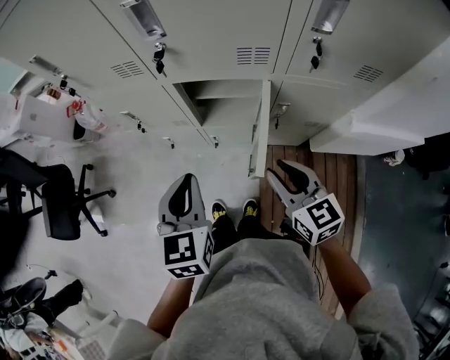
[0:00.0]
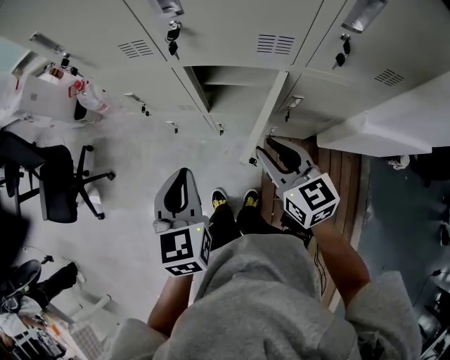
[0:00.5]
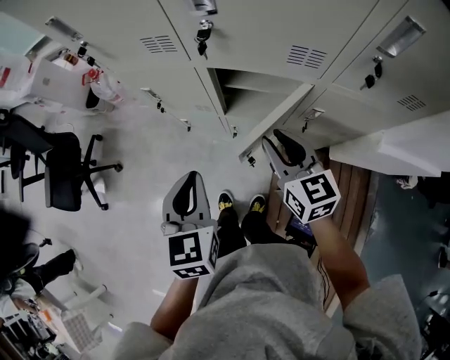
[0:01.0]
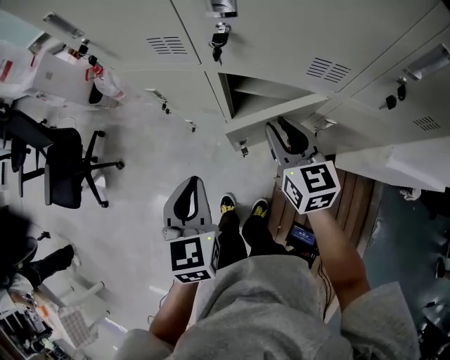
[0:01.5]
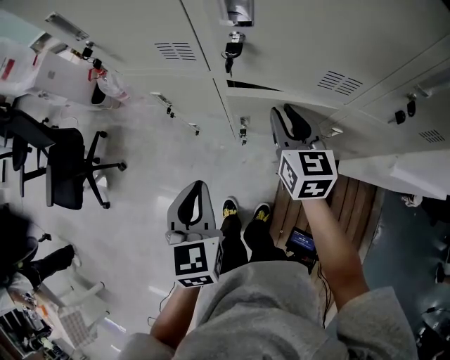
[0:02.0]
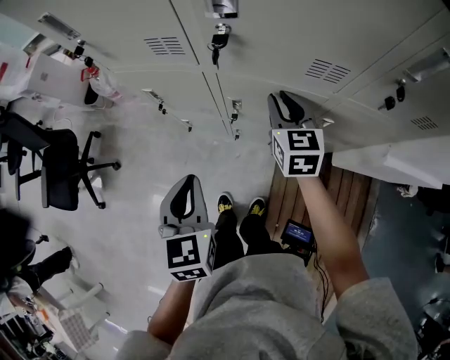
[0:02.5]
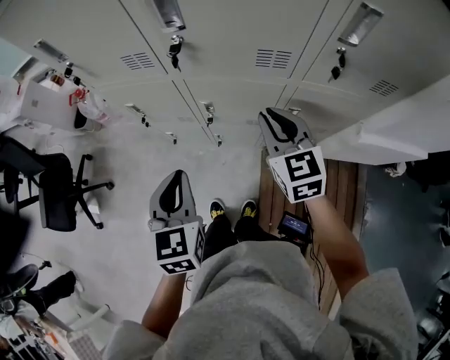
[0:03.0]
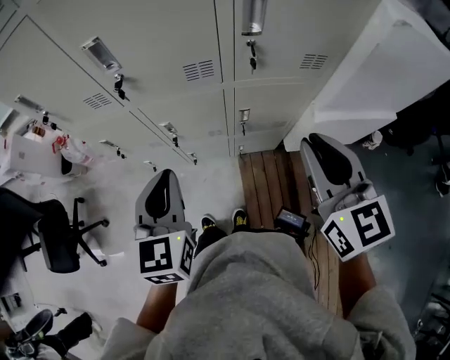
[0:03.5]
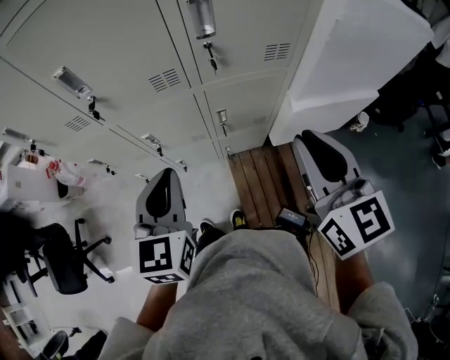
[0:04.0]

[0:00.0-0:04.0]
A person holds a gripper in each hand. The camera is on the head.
0:00.0 to 0:02.0: The right gripper heads forward, covering about 20 cm; the left gripper moves to the left, about 5 cm.
0:02.0 to 0:04.0: The left gripper heads to the right and upward, covering approximately 25 cm, and turns by roughly 30 degrees. Meanwhile the right gripper moves backward, to the right and upward, roughly 40 cm.

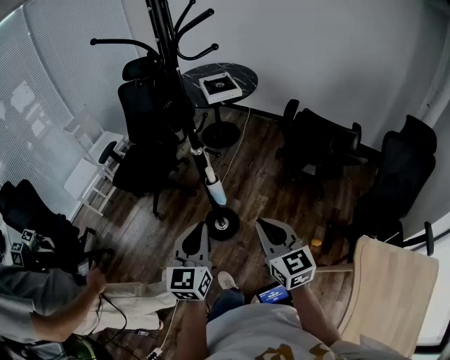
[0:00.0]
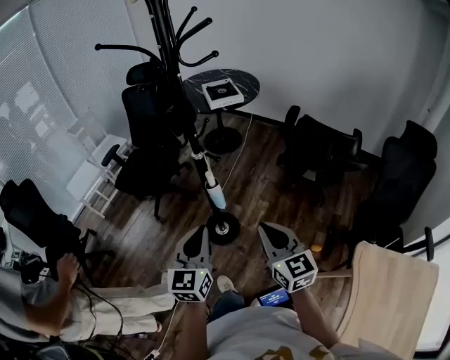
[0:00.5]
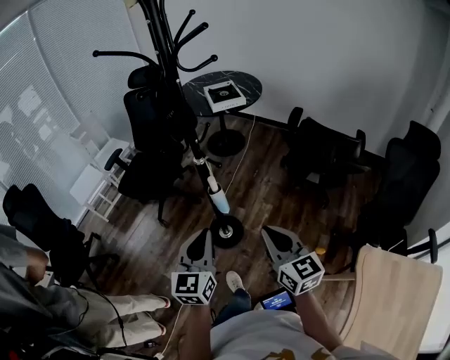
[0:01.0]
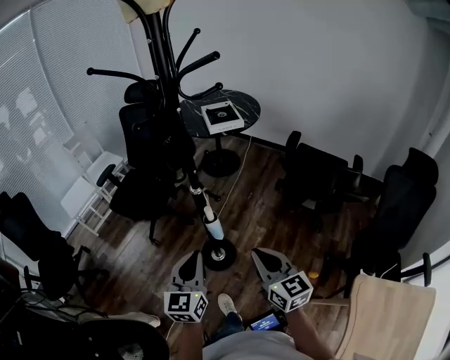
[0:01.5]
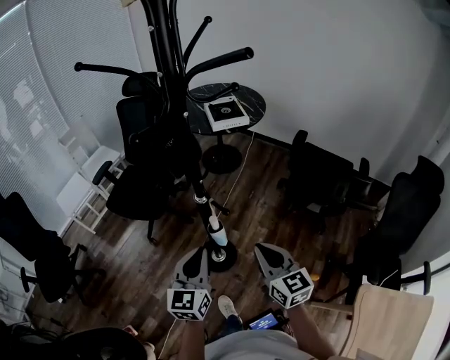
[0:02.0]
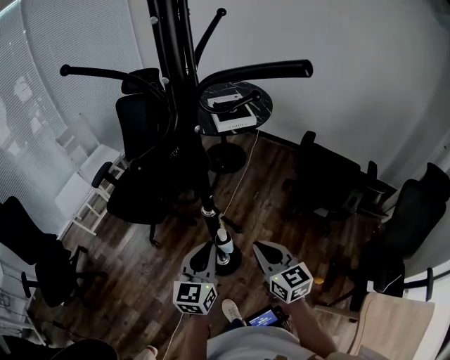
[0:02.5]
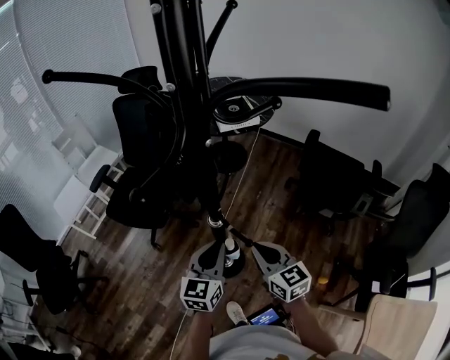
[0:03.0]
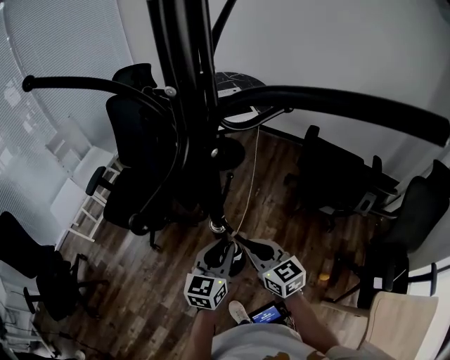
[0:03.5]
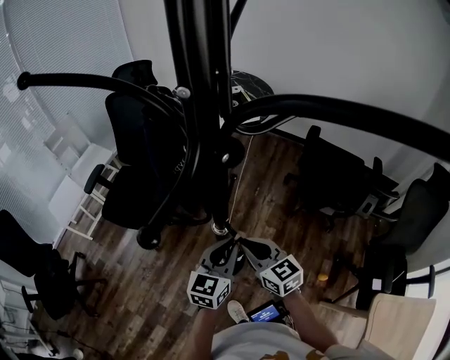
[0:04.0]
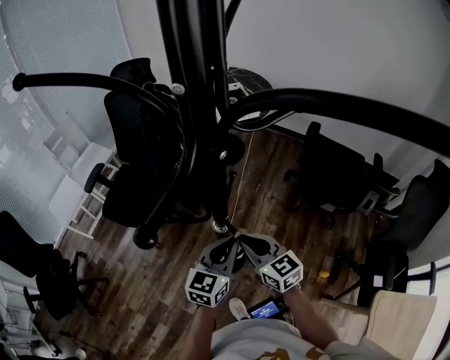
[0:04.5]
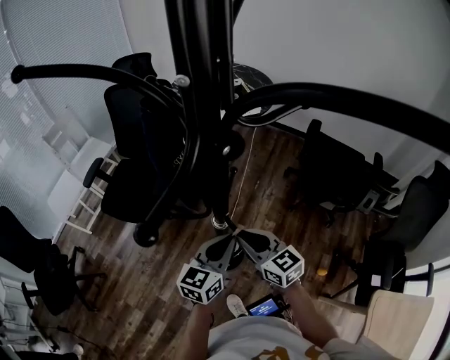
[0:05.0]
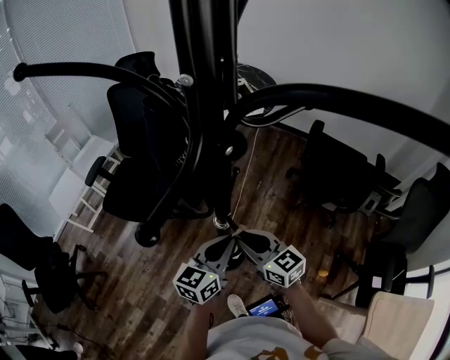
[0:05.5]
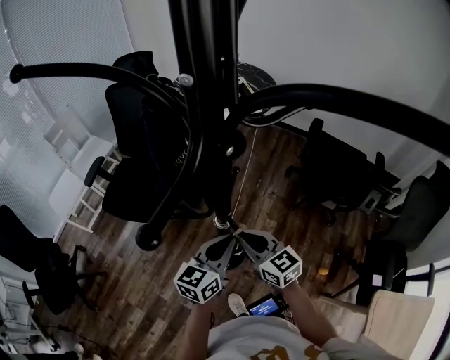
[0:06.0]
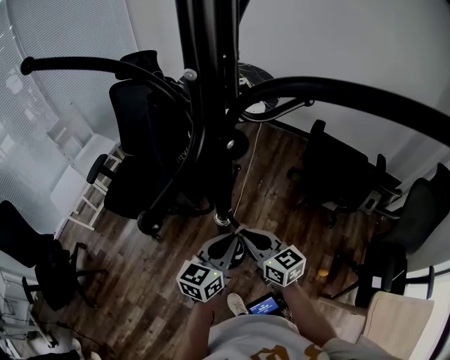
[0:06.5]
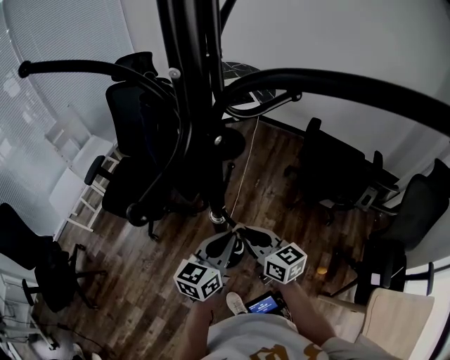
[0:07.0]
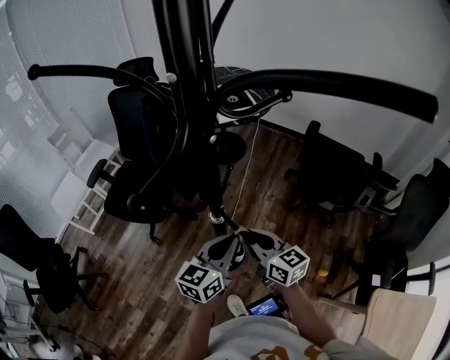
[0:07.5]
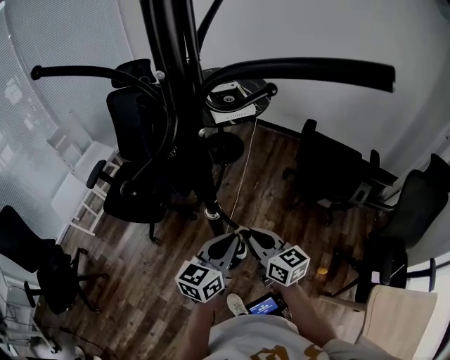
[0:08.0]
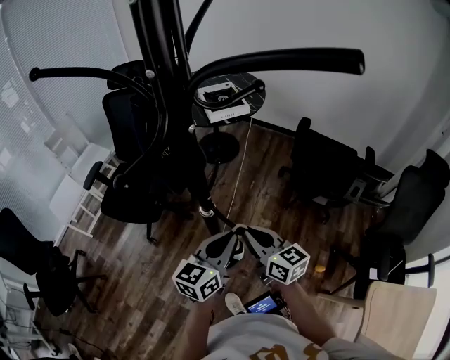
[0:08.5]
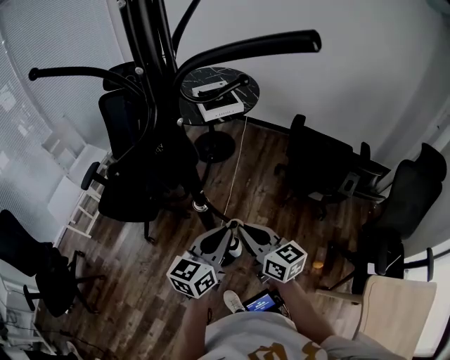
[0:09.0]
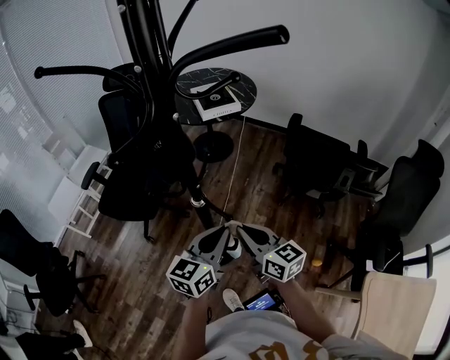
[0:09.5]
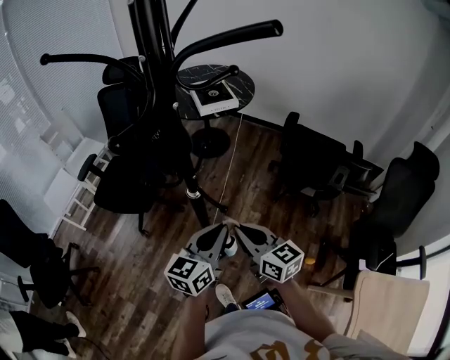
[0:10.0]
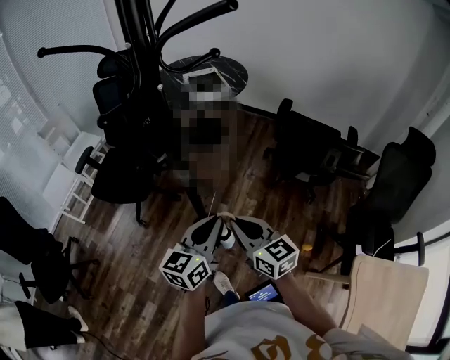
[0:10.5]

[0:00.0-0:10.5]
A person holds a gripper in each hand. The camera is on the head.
0:00.0 to 0:02.0: Both grippers travel together forward, approximately 15 cm.
0:02.0 to 0:04.0: The left gripper shifts roughly 15 cm forward. Meanwhile the right gripper heads forward, to the left and downward, covering about 20 cm.
0:04.0 to 0:06.5: The grippers move only a little.
0:06.5 to 0:08.5: The right gripper moves to the right, roughly 5 cm; the left gripper ends up about 5 cm from where it was.
0:08.5 to 0:10.5: Both grippers travel together backward, some 10 cm.

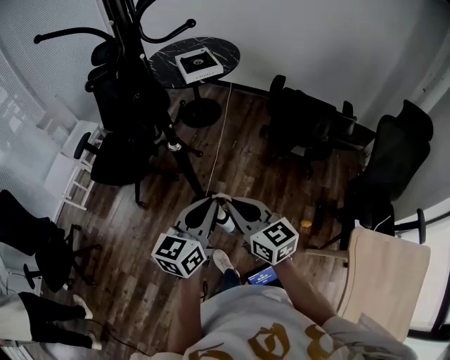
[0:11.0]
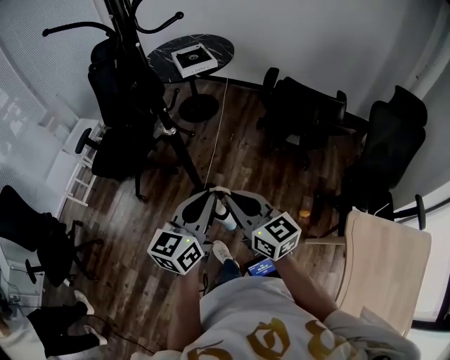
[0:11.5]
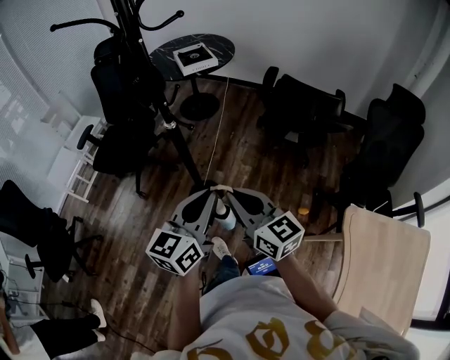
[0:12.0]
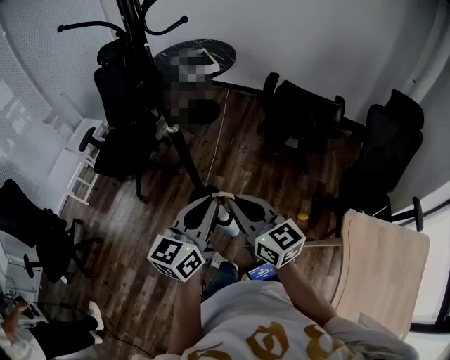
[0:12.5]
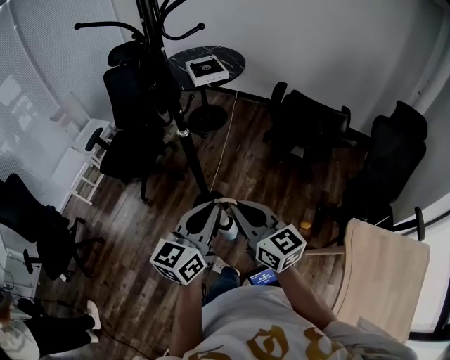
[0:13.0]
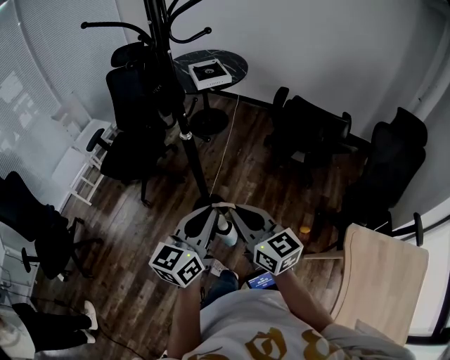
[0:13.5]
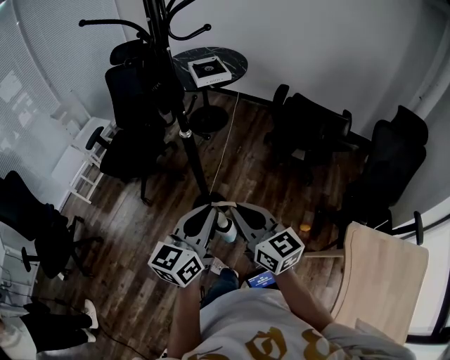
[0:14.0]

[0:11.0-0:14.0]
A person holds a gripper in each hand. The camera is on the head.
0:11.0 to 0:12.5: Both grippers move backward, approximately 10 cm.
0:12.5 to 0:14.0: The grippers stay close to where they were, moving slightly.

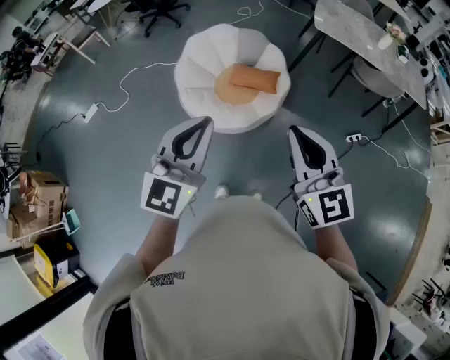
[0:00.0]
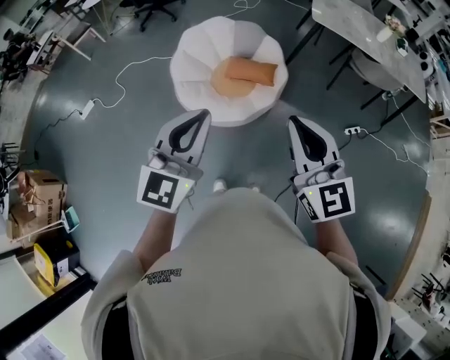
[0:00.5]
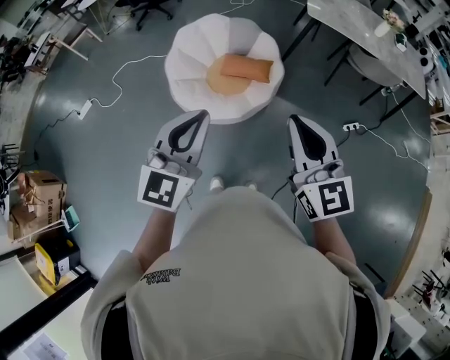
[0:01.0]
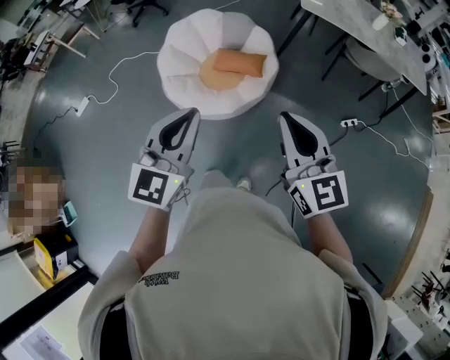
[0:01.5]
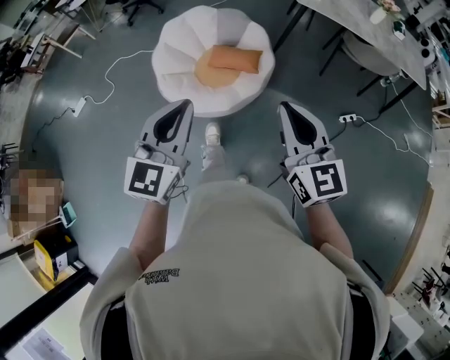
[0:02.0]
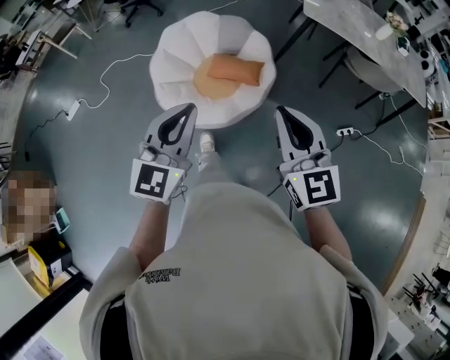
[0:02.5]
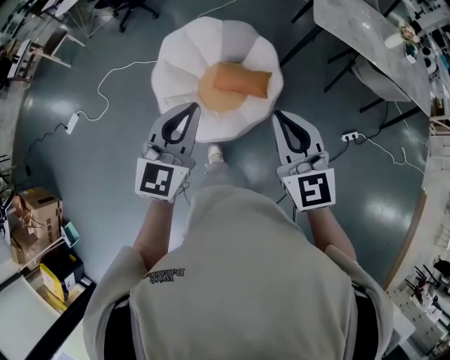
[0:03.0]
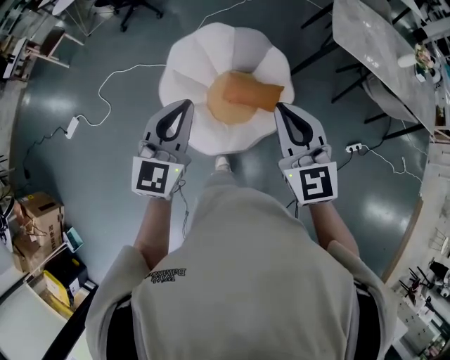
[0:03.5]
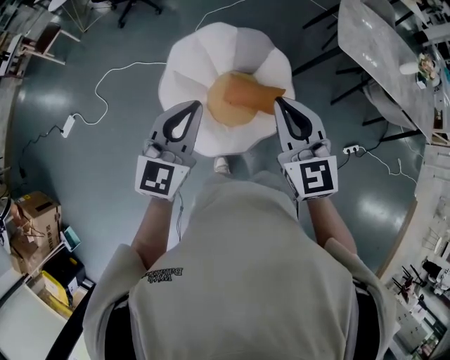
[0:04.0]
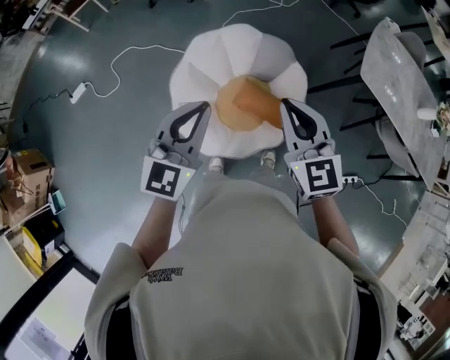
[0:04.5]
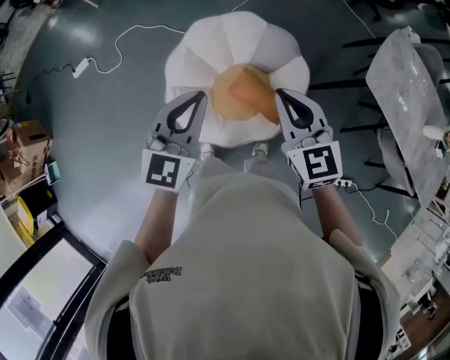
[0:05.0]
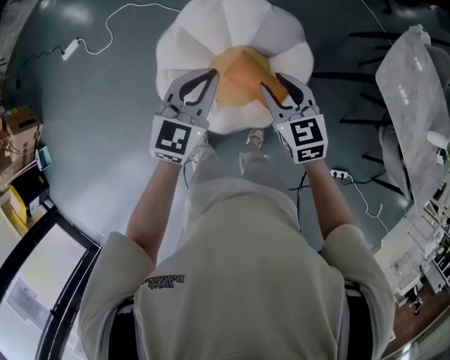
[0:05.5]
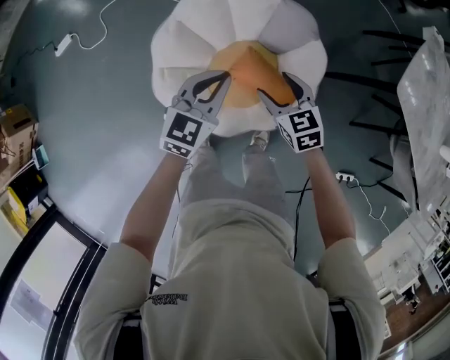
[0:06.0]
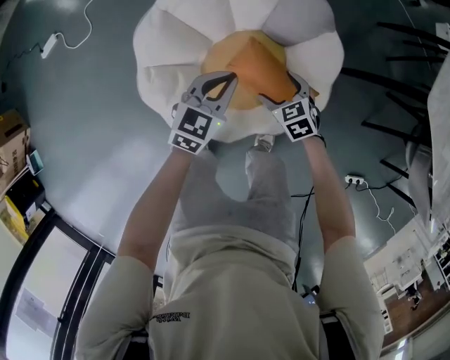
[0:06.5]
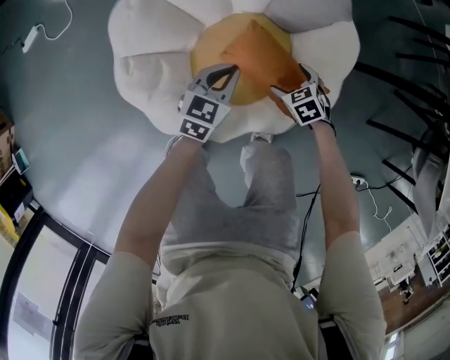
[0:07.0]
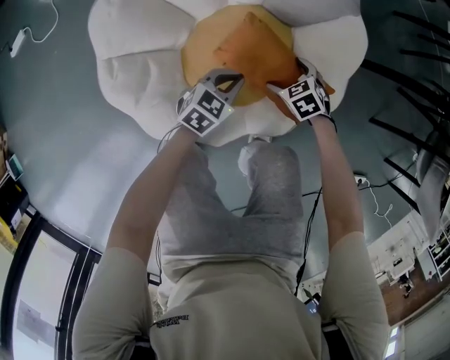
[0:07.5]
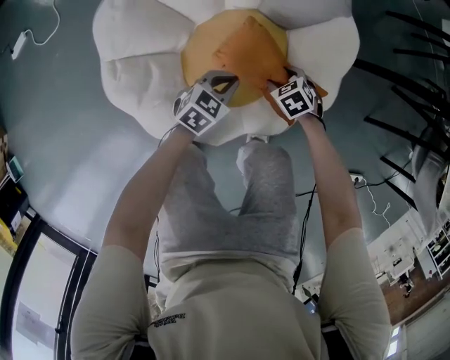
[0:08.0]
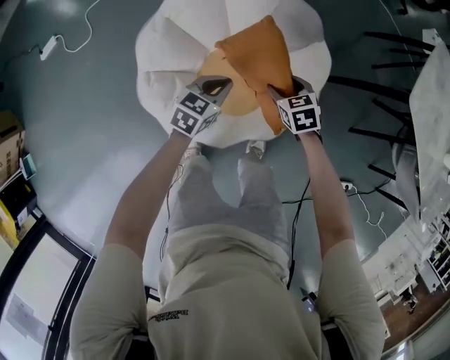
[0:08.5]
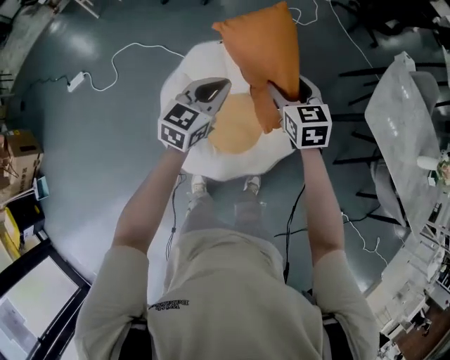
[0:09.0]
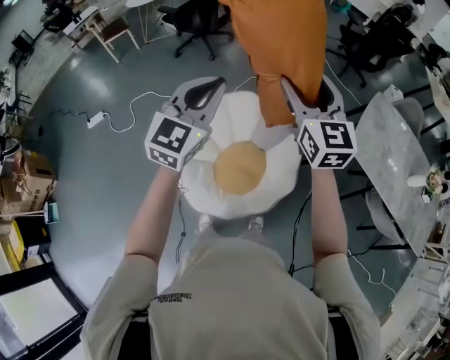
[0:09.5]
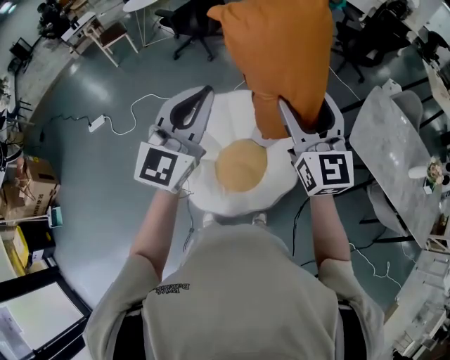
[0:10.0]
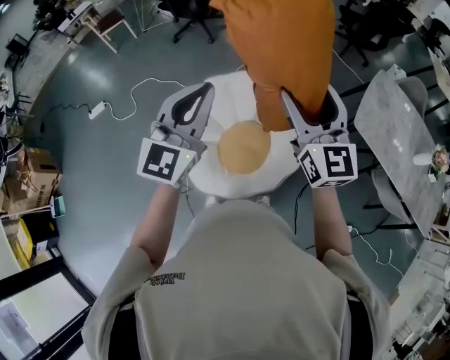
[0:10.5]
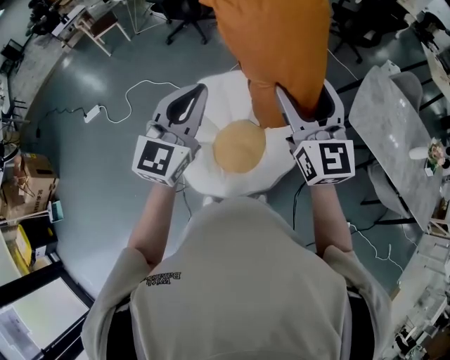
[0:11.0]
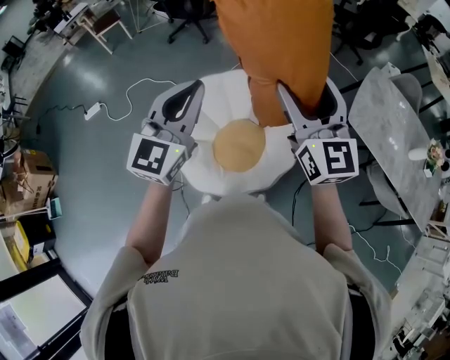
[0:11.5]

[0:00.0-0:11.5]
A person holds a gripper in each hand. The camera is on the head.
0:00.0 to 0:02.0: The left gripper moves to the right and downward, some 10 cm. Meanwhile the right gripper travels to the right, downward and forward by roughly 15 cm.
0:02.0 to 0:04.0: The pair of grippers is taken forward and to the left, roughly 50 cm.
0:04.0 to 0:06.0: The right gripper moves downward and forward, about 40 cm, turns by approximately 40 degrees, and opens. The left gripper is displaced downward, forward and to the right by approximately 35 cm, and swivels roughly 20 degrees.
0:06.0 to 0:07.5: Both grippers travel together downward, some 50 cm. The left gripper turns by some 30 degrees. The right gripper swivels about 30 degrees.
0:07.5 to 0:09.5: Both grippers move upward, roughly 90 cm. The right gripper points its fingers approximately 70 degrees further upward, and closes; the left gripper points its fingers roughly 40 degrees further upward.
0:09.5 to 0:11.5: The two grippers go approximately 10 cm backward.
